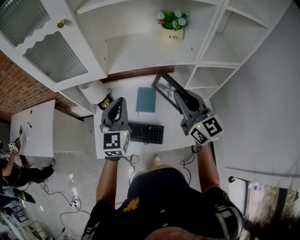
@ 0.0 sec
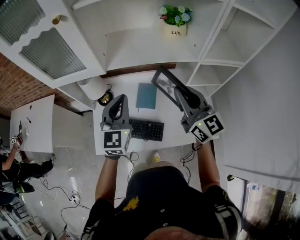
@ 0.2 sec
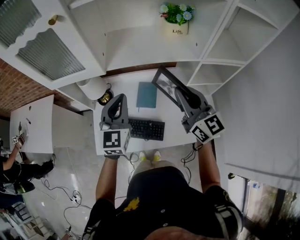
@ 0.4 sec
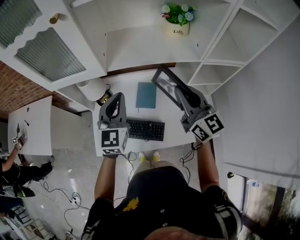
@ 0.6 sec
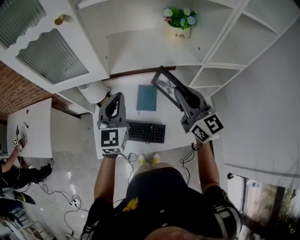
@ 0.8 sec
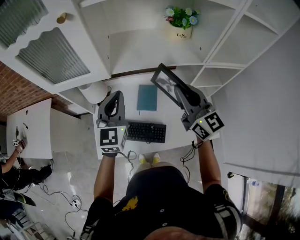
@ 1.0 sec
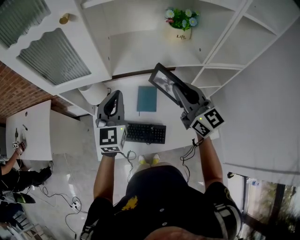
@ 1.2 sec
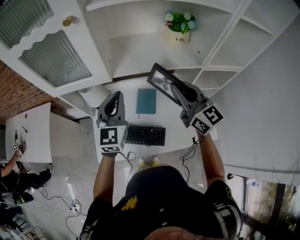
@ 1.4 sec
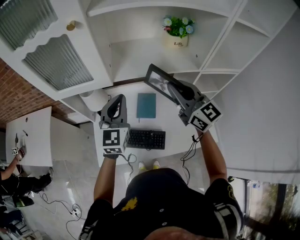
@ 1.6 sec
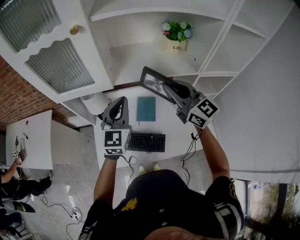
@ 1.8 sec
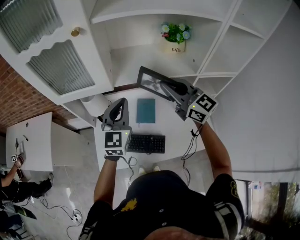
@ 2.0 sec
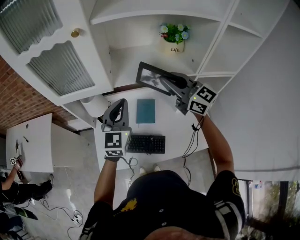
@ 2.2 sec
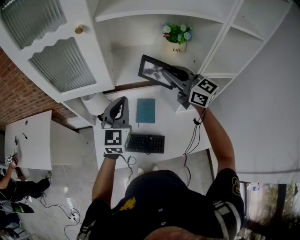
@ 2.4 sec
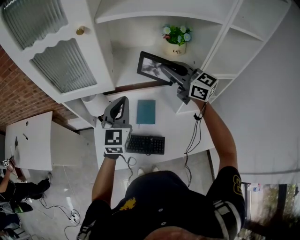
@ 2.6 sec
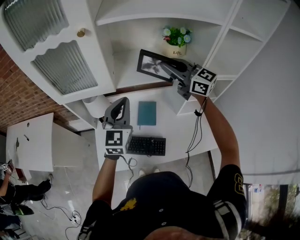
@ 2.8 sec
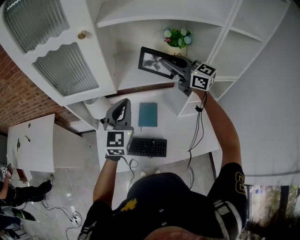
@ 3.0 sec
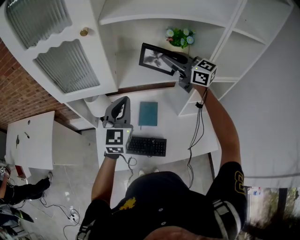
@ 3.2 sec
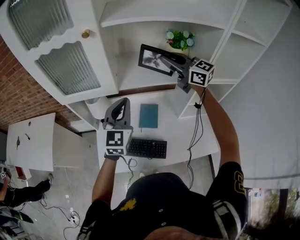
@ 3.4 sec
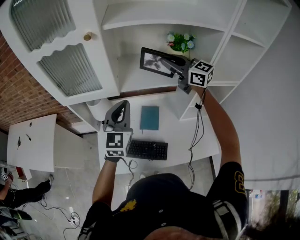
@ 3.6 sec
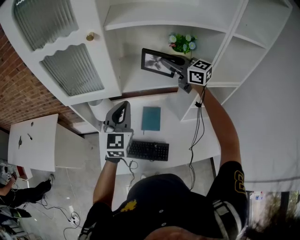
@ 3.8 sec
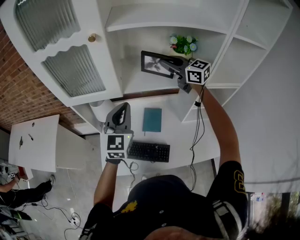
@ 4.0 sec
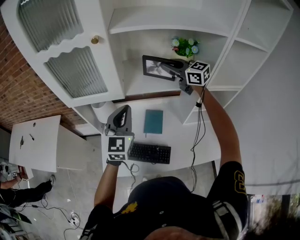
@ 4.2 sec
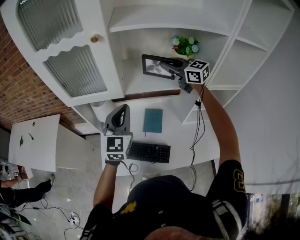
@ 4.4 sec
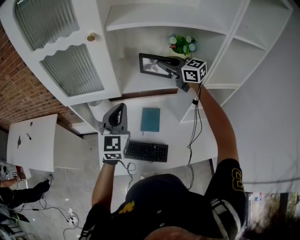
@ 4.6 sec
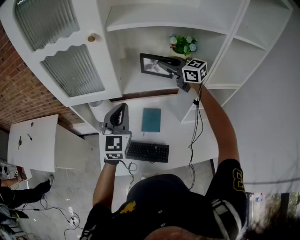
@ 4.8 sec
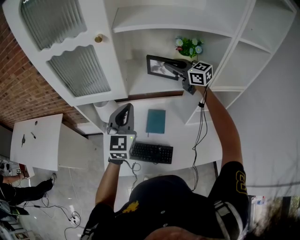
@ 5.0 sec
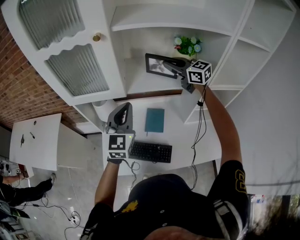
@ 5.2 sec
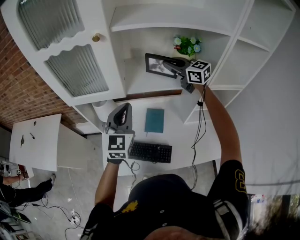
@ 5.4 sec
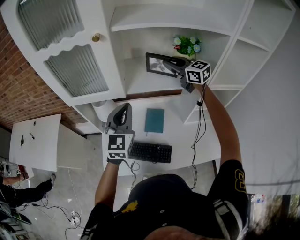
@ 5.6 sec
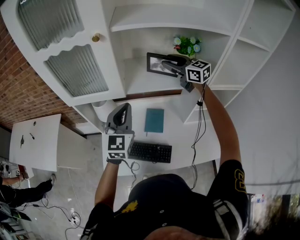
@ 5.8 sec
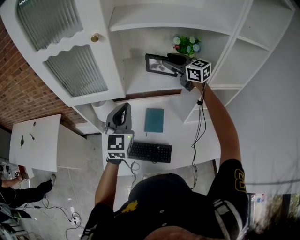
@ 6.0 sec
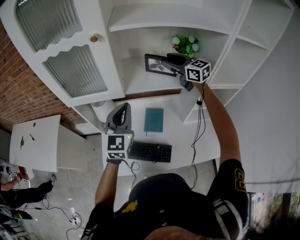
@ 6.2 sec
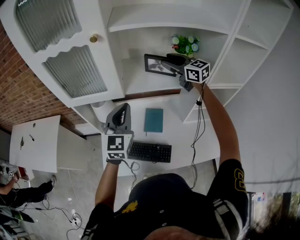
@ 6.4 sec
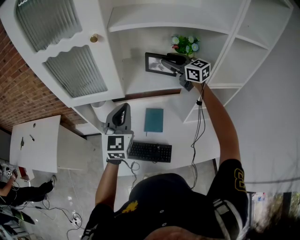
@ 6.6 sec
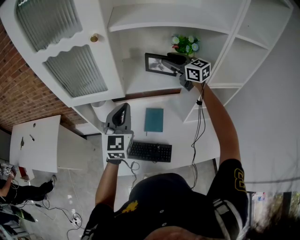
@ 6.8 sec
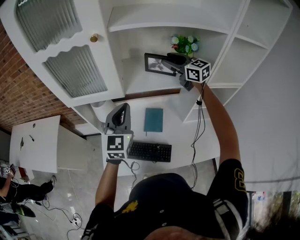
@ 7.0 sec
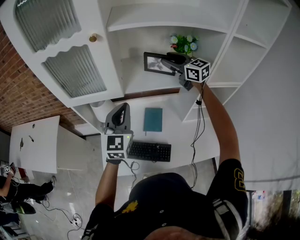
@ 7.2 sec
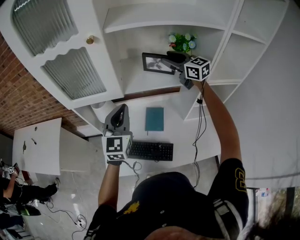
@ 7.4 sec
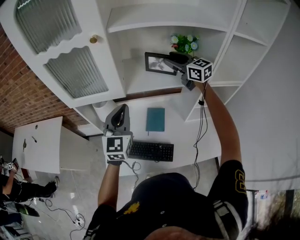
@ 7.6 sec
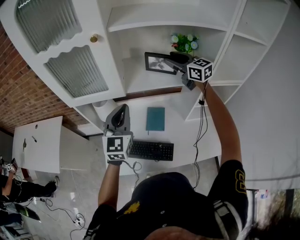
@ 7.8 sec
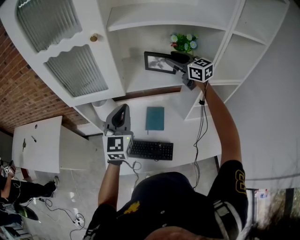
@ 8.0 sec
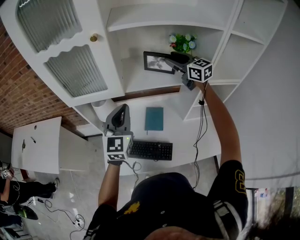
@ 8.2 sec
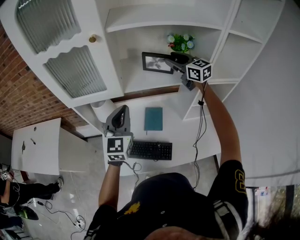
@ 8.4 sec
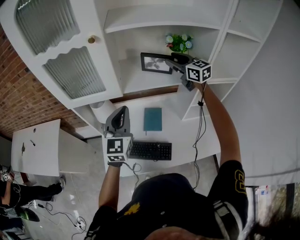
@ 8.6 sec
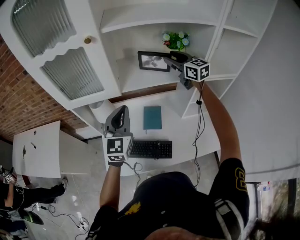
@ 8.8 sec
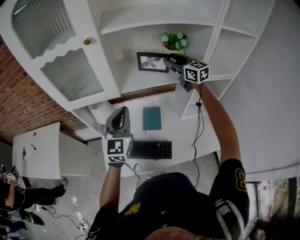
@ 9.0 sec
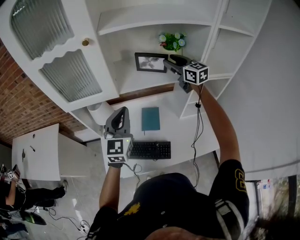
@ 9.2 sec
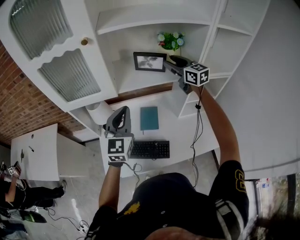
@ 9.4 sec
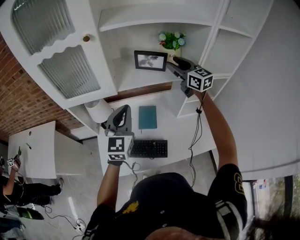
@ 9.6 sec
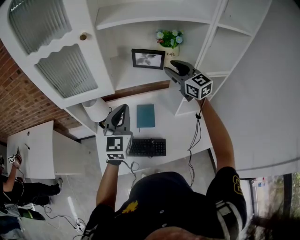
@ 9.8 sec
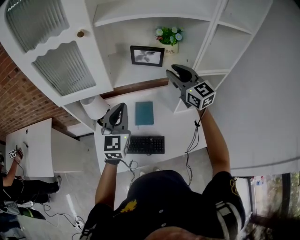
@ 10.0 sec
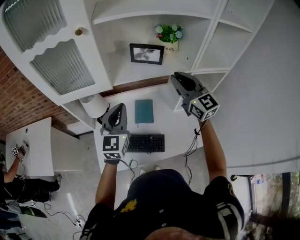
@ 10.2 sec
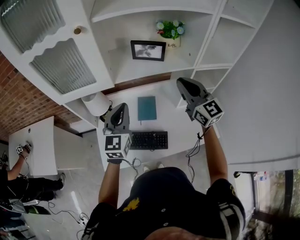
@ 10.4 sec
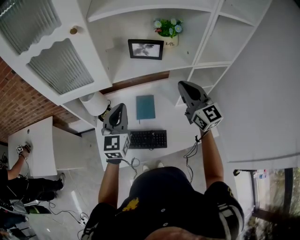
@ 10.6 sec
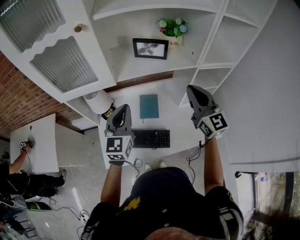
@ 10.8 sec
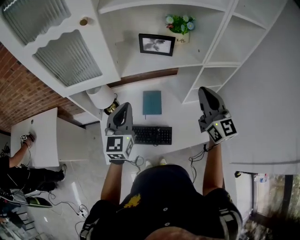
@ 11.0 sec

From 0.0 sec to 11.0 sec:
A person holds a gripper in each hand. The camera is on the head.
From 0.0 sec to 1.6 sec: Both grippers move forward, about 5 cm.
From 1.6 sec to 3.2 sec: The right gripper goes about 15 cm forward and upward.
From 3.2 sec to 4.8 sec: The right gripper heads forward, covering about 5 cm.
From 4.8 sec to 6.2 sec: The right gripper opens.
From 6.2 sec to 7.8 sec: The grippers move only a little.
From 7.8 sec to 9.4 sec: The right gripper changes place by some 5 cm.
From 9.4 sec to 11.0 sec: The right gripper moves backward, some 25 cm, turns by some 20 degrees, and closes its fingers.

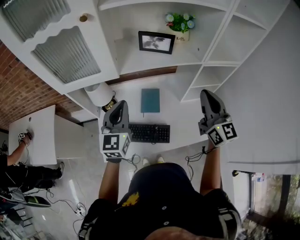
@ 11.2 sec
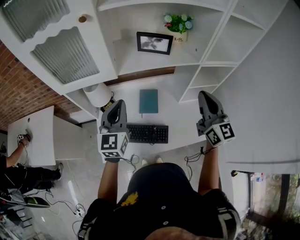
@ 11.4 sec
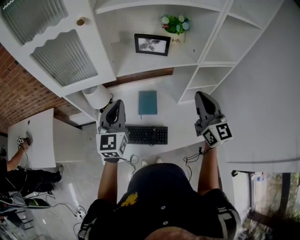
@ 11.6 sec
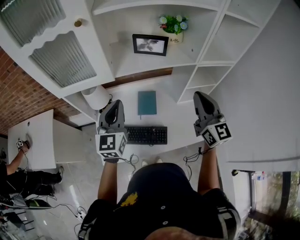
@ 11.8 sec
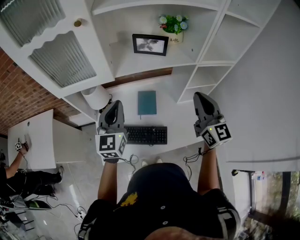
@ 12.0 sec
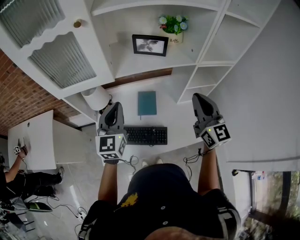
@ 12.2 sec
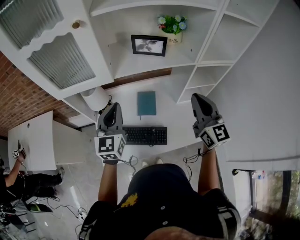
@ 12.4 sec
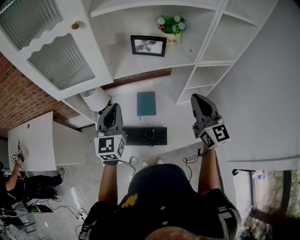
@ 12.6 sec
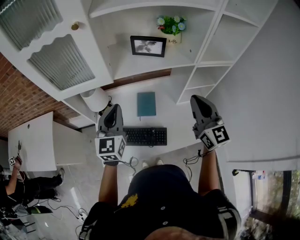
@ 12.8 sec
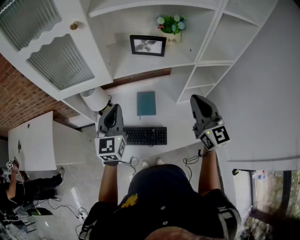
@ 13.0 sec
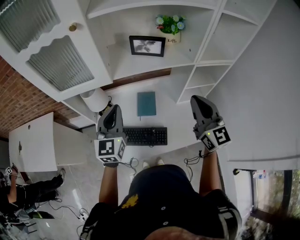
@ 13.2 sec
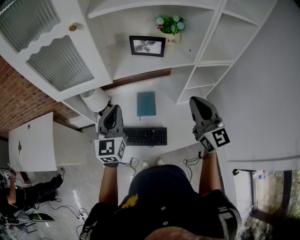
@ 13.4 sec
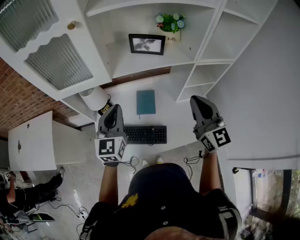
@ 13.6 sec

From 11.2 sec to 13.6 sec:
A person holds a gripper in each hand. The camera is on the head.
From 11.2 sec to 13.6 sec: The grippers stay close to where they were, moving slightly.

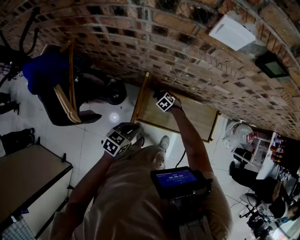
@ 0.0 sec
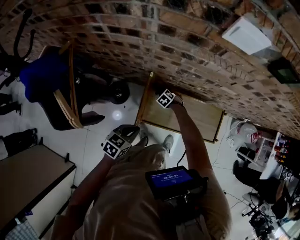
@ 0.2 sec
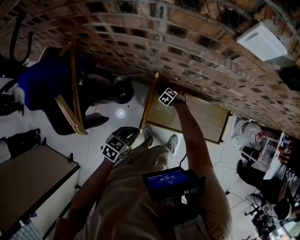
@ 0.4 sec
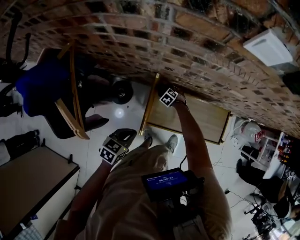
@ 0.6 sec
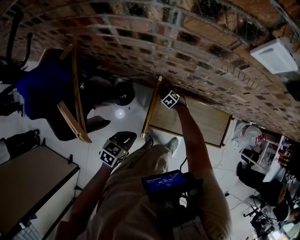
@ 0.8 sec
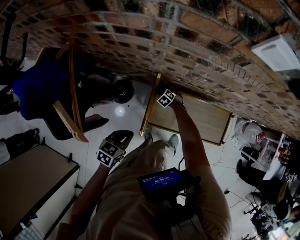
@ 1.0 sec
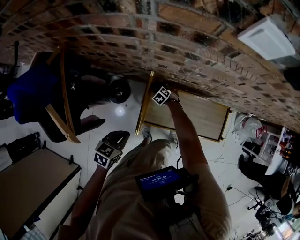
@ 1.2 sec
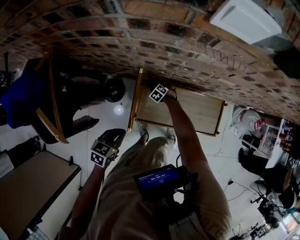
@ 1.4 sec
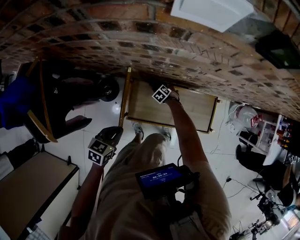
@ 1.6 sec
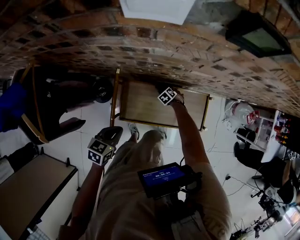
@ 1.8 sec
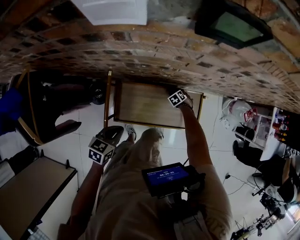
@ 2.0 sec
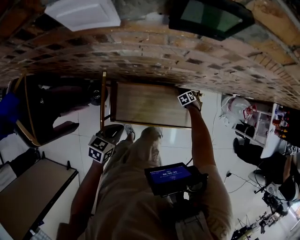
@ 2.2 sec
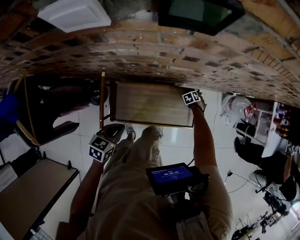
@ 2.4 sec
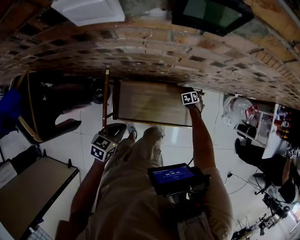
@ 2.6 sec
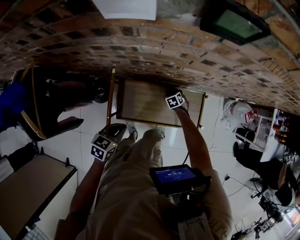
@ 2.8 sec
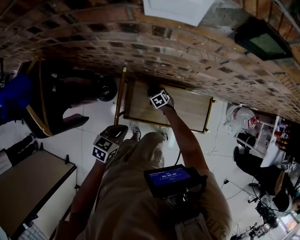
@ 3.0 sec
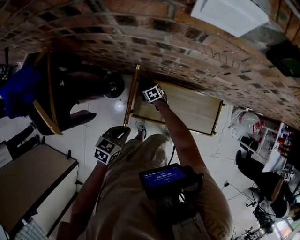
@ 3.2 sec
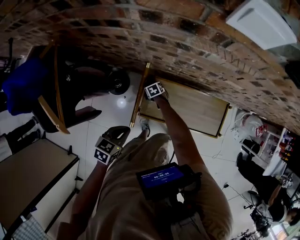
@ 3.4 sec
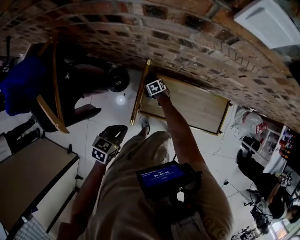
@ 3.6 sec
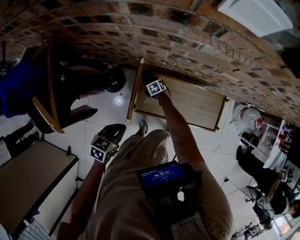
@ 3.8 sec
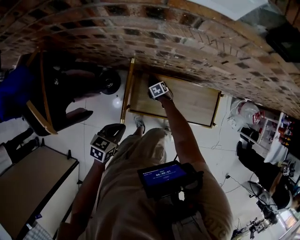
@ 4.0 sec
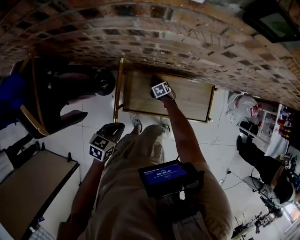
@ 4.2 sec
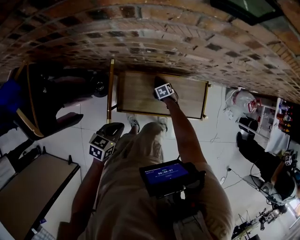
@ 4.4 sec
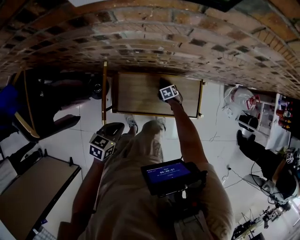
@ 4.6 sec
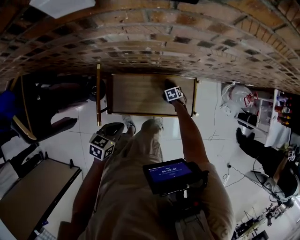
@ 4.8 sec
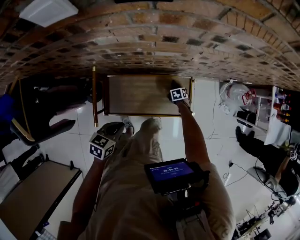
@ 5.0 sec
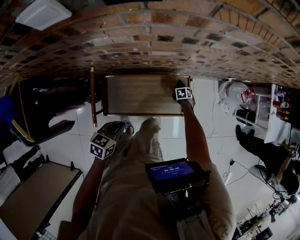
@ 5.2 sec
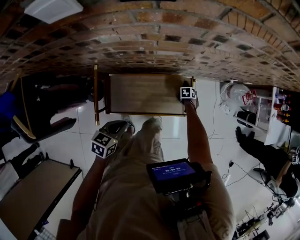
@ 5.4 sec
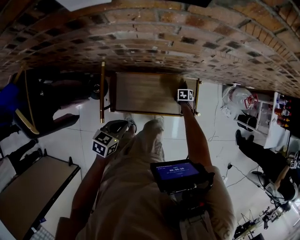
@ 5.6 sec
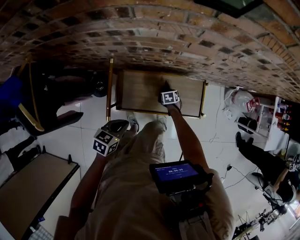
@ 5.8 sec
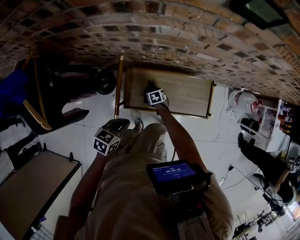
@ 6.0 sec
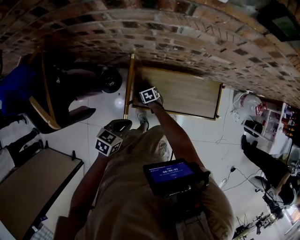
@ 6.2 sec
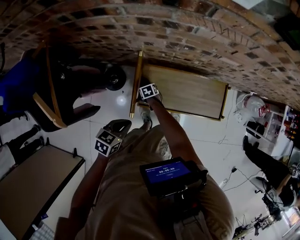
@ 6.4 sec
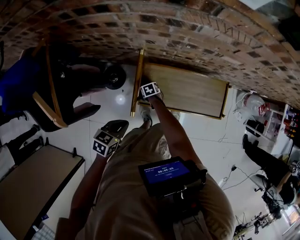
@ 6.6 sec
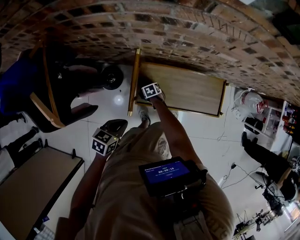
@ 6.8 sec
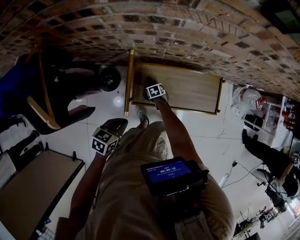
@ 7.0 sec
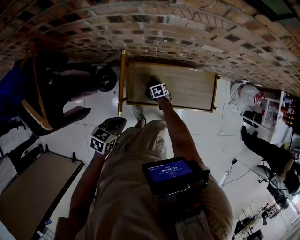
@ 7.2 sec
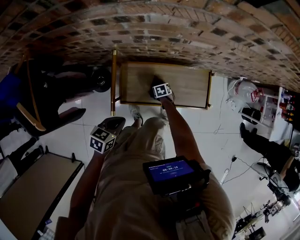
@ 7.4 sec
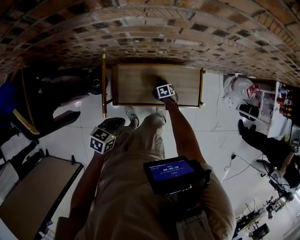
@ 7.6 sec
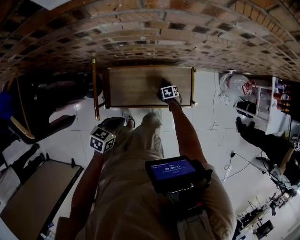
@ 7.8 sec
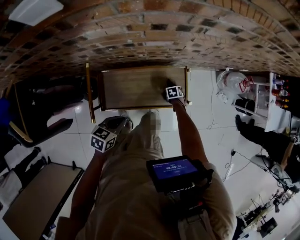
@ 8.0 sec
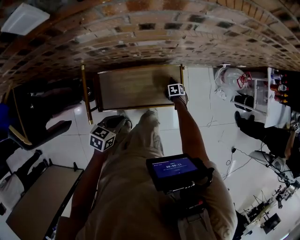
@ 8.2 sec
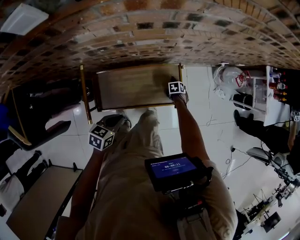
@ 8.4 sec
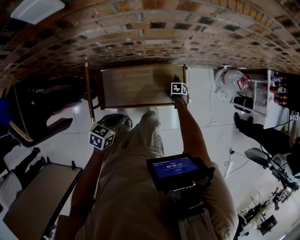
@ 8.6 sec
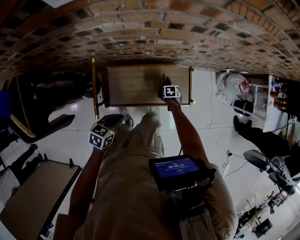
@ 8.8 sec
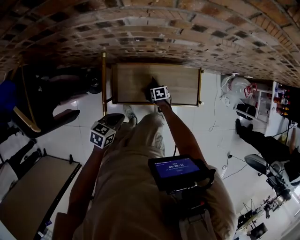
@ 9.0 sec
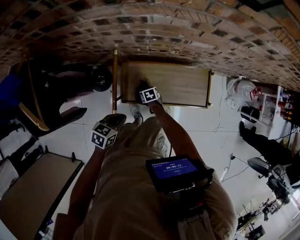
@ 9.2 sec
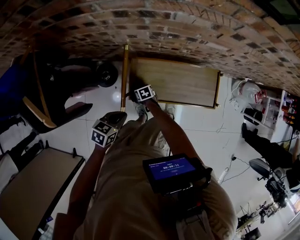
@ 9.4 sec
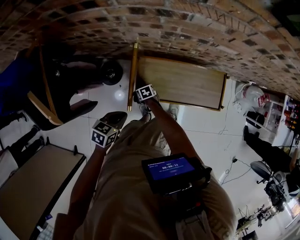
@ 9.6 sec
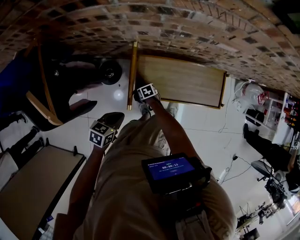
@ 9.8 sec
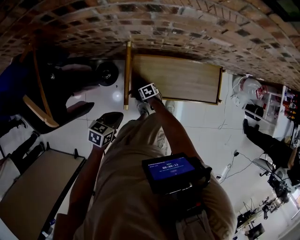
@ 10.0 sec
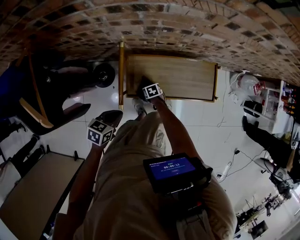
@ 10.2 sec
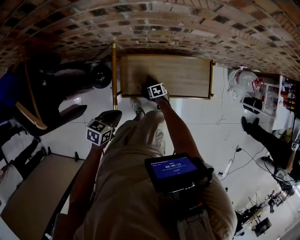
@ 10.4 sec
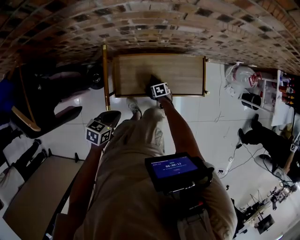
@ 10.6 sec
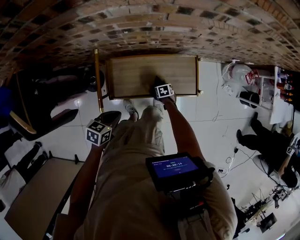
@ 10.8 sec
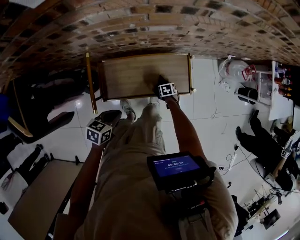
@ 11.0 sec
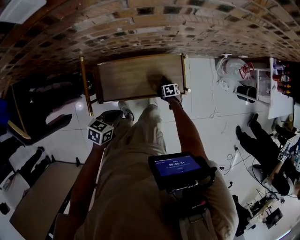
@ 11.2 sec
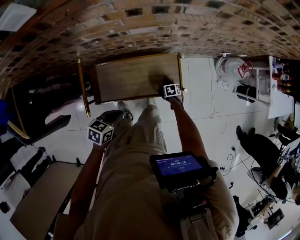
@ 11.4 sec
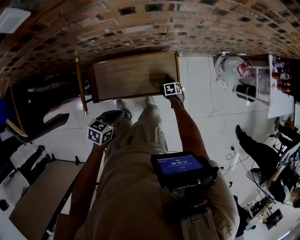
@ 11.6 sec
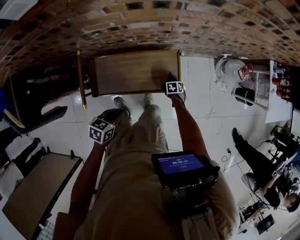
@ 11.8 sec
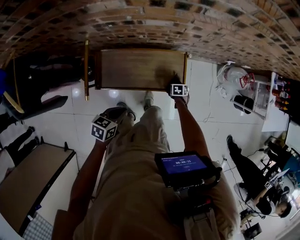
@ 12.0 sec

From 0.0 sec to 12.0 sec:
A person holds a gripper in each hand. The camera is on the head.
From 0.0 sec to 1.6 sec: The right gripper travels downward, to the right and forward by about 15 cm, and opens, then closes again, while the left gripper travels to the left and back again, roughly 10 cm each way.
From 1.6 sec to 3.0 sec: The right gripper shifts some 5 cm upward, and rotates about 20 degrees.
From 3.0 sec to 4.4 sec: The left gripper reaches approximately 10 cm to the left, then returns. Meanwhile the right gripper travels to the right and downward by roughly 15 cm.
From 6.0 sec to 7.6 sec: The right gripper moves about 15 cm.
From 10.4 sec to 12.0 sec: The left gripper changes place by about 25 cm. The right gripper moves some 35 cm.
